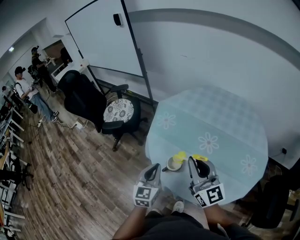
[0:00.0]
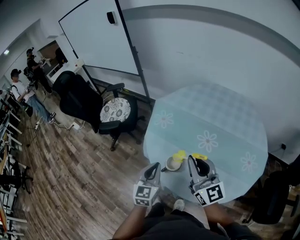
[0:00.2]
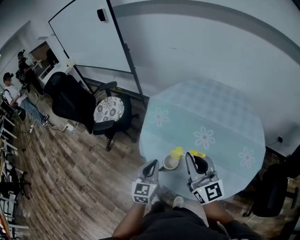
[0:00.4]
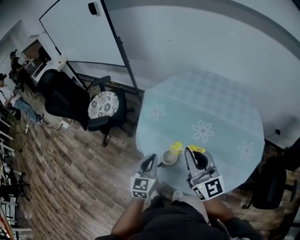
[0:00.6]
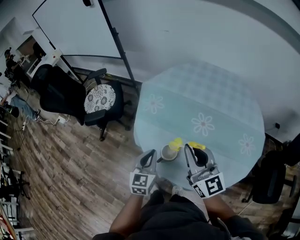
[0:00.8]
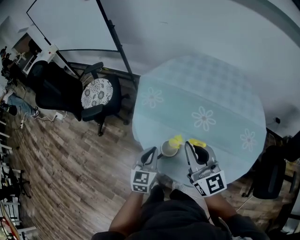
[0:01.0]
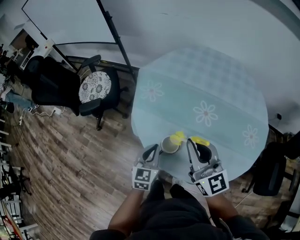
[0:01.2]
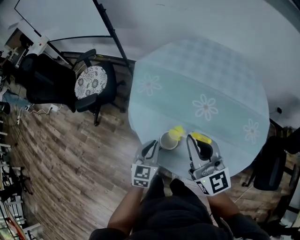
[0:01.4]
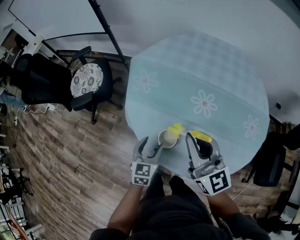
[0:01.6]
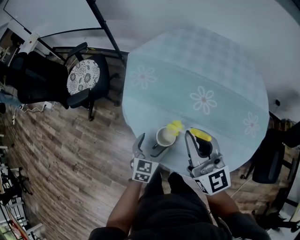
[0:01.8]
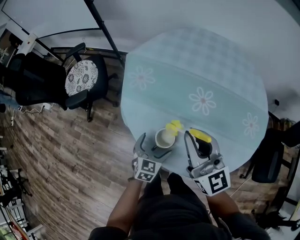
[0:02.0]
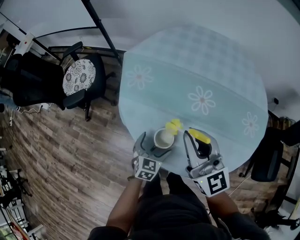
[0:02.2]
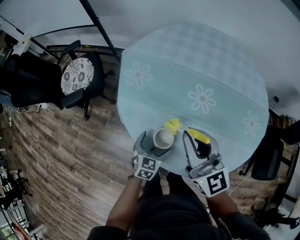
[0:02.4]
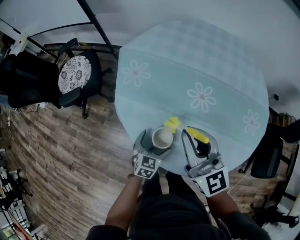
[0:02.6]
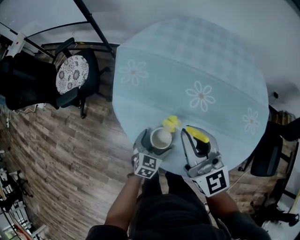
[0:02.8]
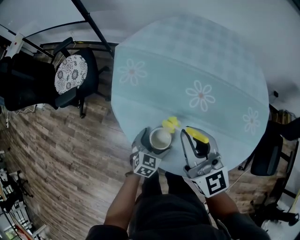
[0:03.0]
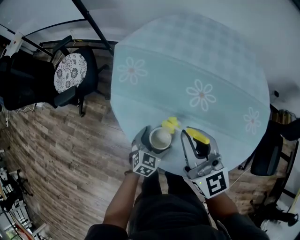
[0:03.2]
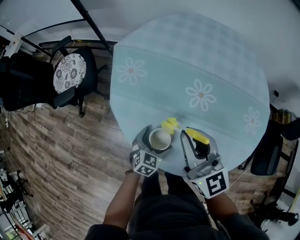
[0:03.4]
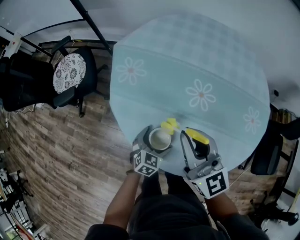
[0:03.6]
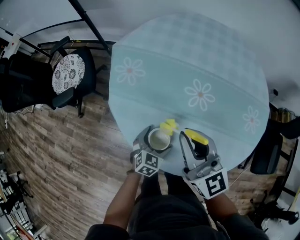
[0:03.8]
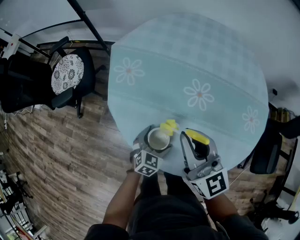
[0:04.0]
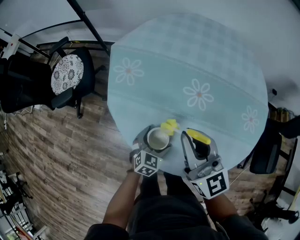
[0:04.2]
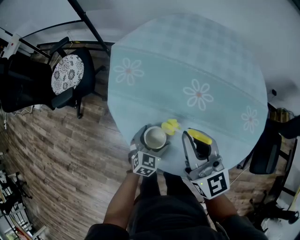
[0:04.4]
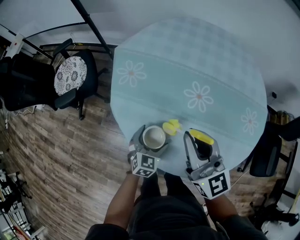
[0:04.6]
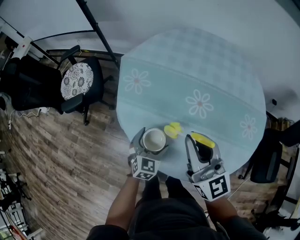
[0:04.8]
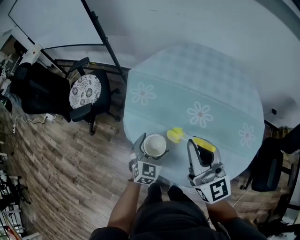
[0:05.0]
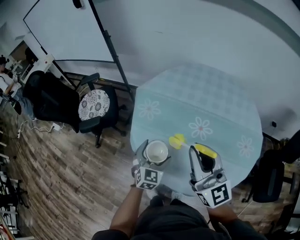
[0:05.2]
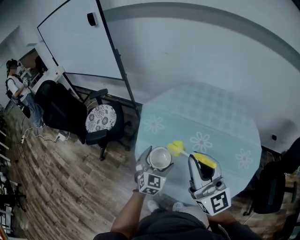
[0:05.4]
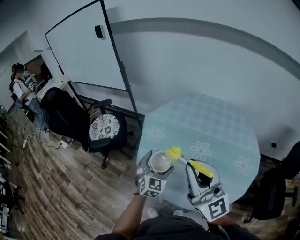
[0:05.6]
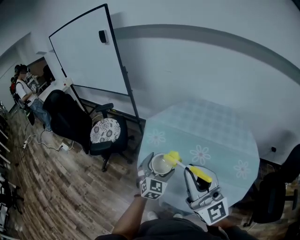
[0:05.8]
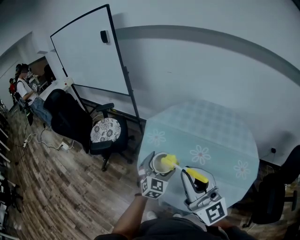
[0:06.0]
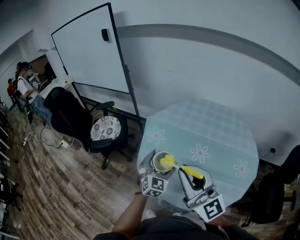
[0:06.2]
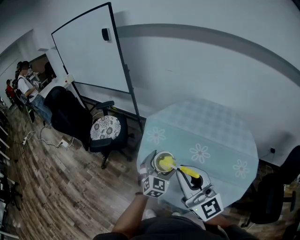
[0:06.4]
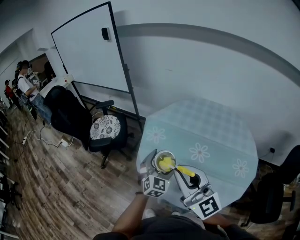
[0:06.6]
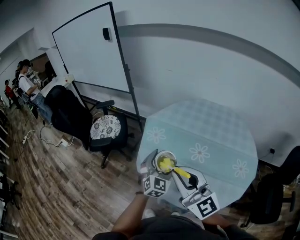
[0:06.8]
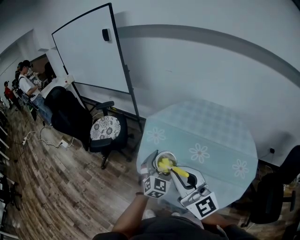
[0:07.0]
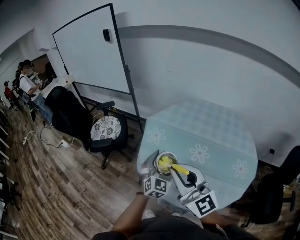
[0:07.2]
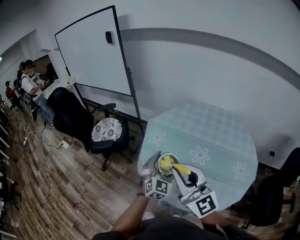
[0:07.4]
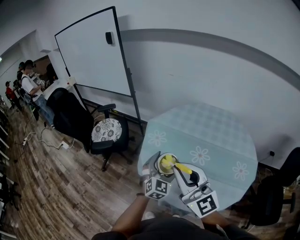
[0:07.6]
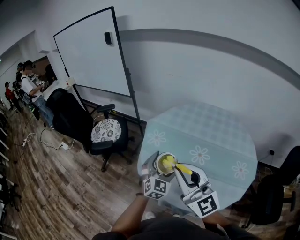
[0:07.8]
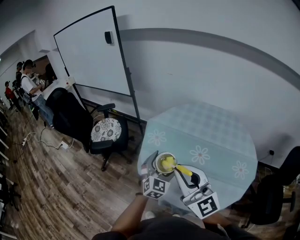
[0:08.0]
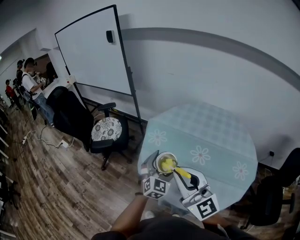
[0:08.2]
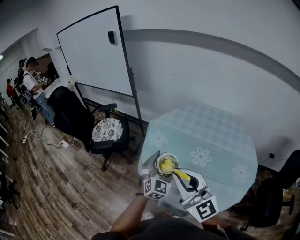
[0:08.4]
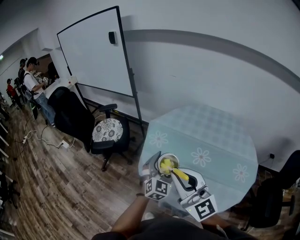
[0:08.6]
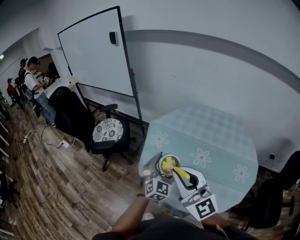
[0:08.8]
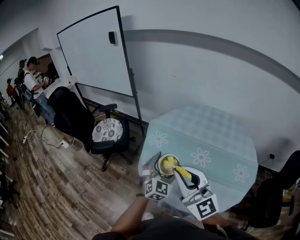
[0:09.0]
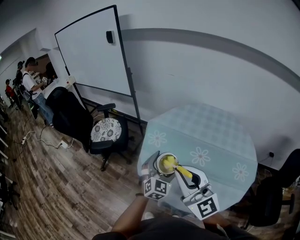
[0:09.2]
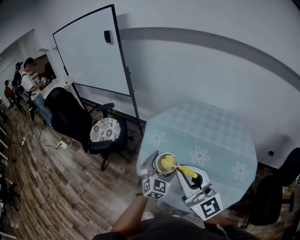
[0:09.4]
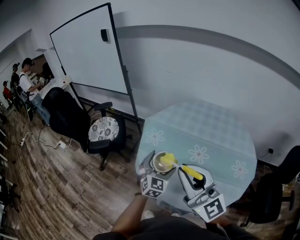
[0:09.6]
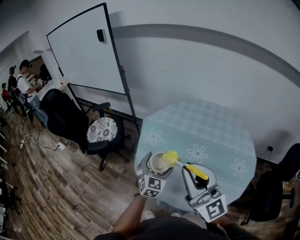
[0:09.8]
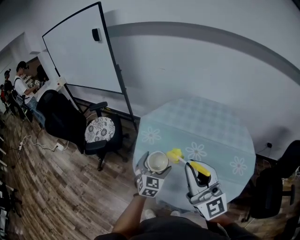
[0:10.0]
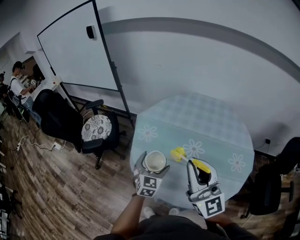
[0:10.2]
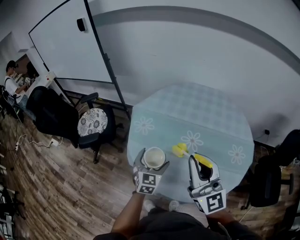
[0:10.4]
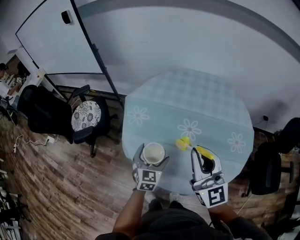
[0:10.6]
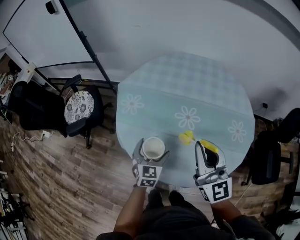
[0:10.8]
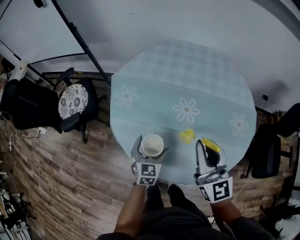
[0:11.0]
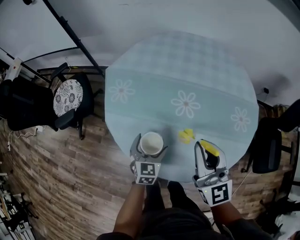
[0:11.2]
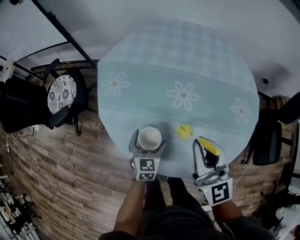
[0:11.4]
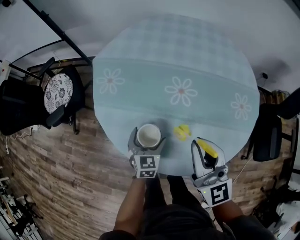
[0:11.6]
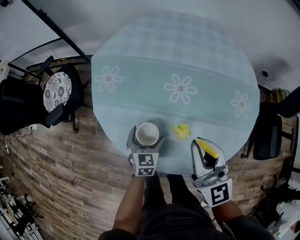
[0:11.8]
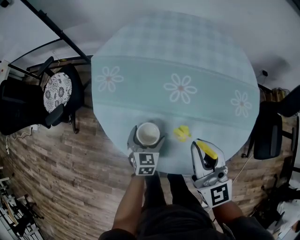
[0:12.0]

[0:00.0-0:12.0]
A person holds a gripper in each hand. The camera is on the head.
0.0 to 1.6 s: The right gripper is displaced downward and forward by some 15 cm. The left gripper travels downward and forward by roughly 20 cm, rotates roughly 20 degrees, and opens.
1.6 to 3.0 s: The left gripper shifts some 15 cm downward and to the right, swivels some 20 degrees, and opens up. Meanwhile the right gripper moves roughly 5 cm.
3.0 to 4.4 s: There are only small adjustments of the grippers.
4.4 to 6.0 s: The right gripper travels upward and backward by some 35 cm, and turns by approximately 30 degrees. The left gripper shifts roughly 30 cm upward, and rotates roughly 30 degrees.
6.0 to 7.6 s: The grippers make only small movements.
7.6 to 9.0 s: The grippers move only a little.
9.0 to 10.4 s: The left gripper travels downward by roughly 10 cm, while the right gripper moves to the right, roughly 10 cm.
10.4 to 12.0 s: The two grippers go about 25 cm downward. The right gripper changes its angle by approximately 20 degrees.

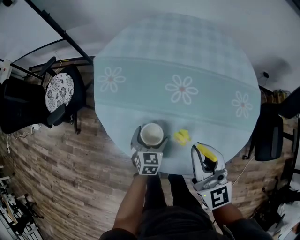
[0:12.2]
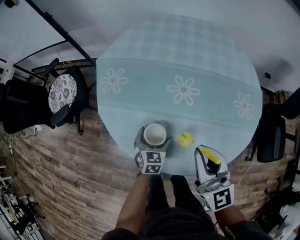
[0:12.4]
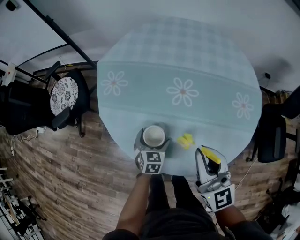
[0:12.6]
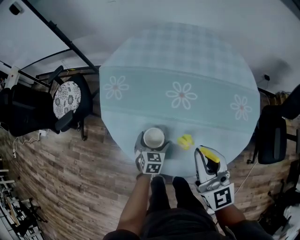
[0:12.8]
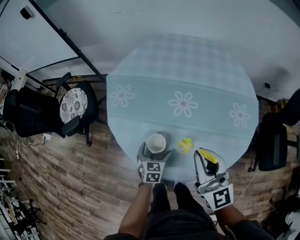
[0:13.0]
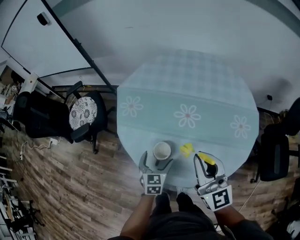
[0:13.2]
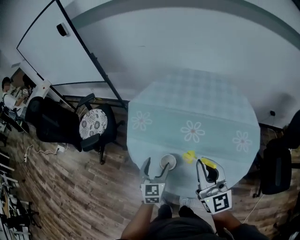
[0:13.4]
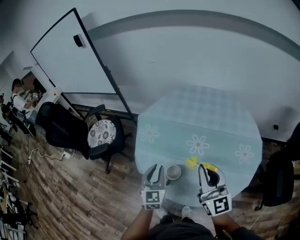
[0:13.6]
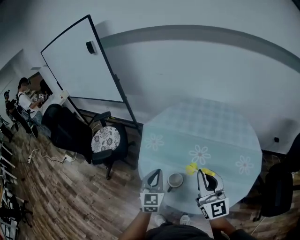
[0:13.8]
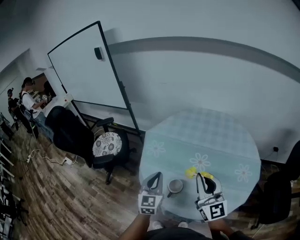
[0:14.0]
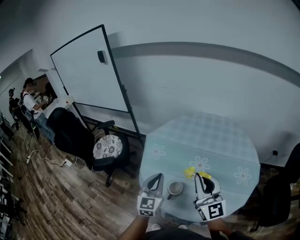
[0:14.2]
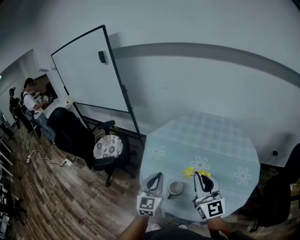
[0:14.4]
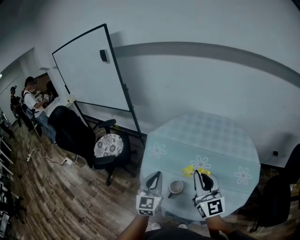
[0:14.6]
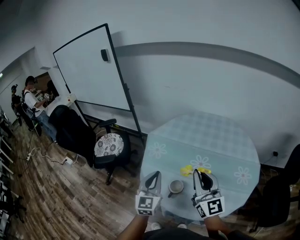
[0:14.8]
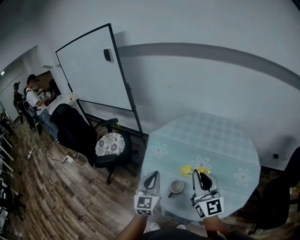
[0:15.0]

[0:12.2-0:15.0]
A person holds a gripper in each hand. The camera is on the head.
12.2 to 13.6 s: The right gripper moves upward, approximately 15 cm. The left gripper travels upward by some 30 cm, rotates roughly 30 degrees, and closes.
13.6 to 15.0 s: The right gripper heads upward and to the left, covering approximately 10 cm. Meanwhile the left gripper shifts approximately 10 cm upward.

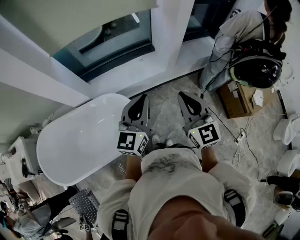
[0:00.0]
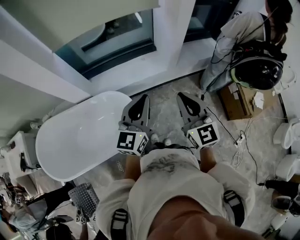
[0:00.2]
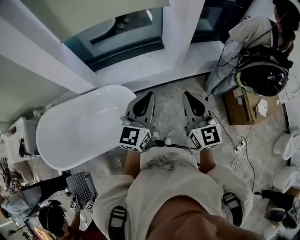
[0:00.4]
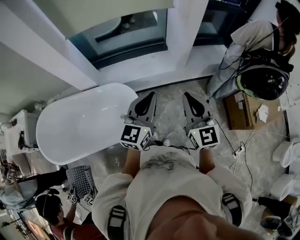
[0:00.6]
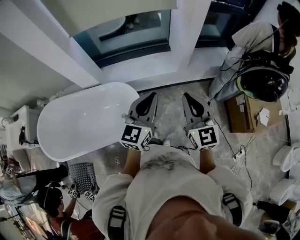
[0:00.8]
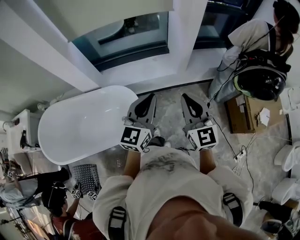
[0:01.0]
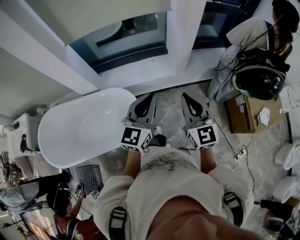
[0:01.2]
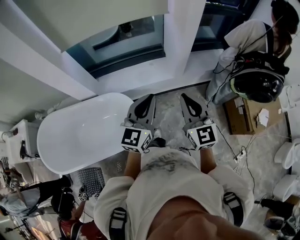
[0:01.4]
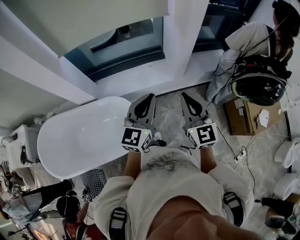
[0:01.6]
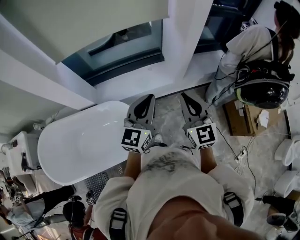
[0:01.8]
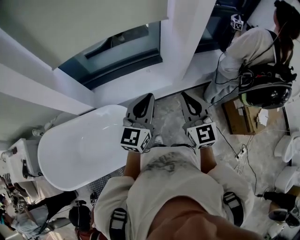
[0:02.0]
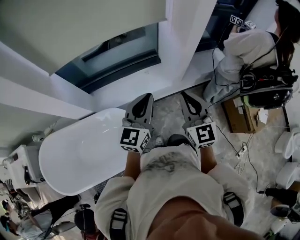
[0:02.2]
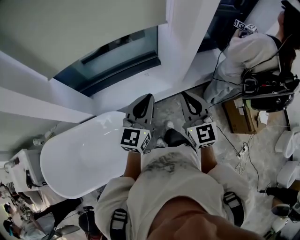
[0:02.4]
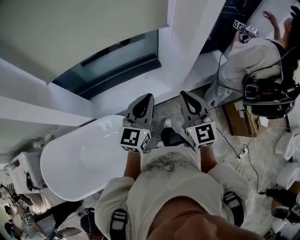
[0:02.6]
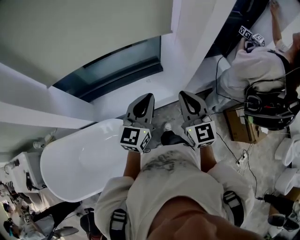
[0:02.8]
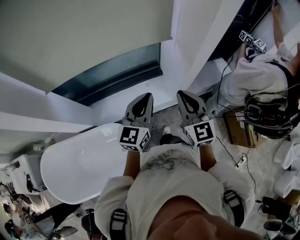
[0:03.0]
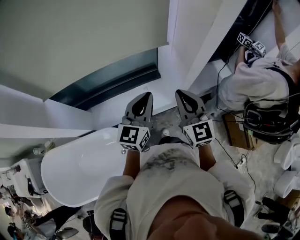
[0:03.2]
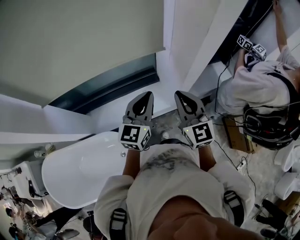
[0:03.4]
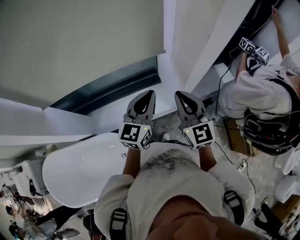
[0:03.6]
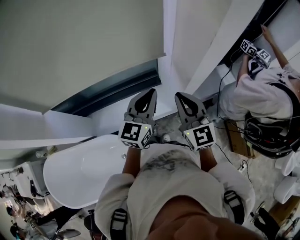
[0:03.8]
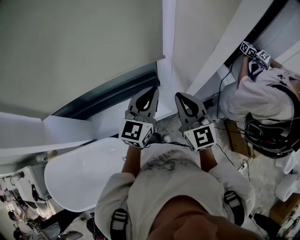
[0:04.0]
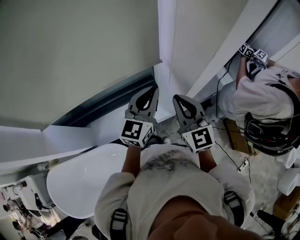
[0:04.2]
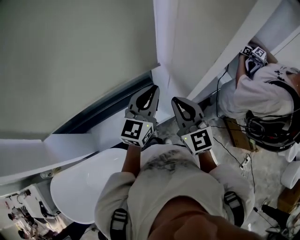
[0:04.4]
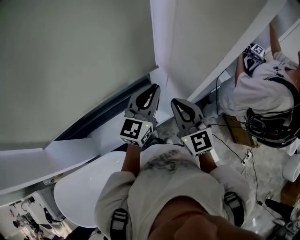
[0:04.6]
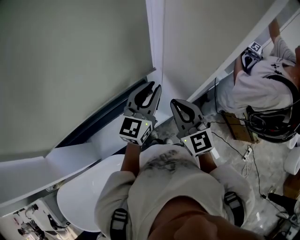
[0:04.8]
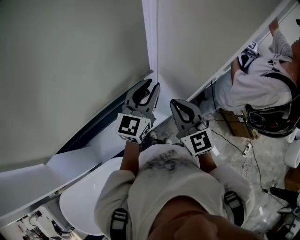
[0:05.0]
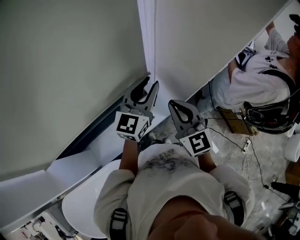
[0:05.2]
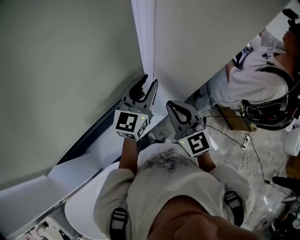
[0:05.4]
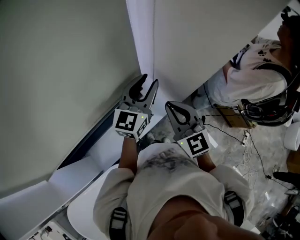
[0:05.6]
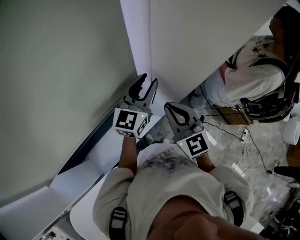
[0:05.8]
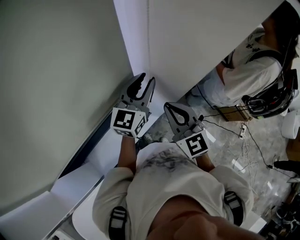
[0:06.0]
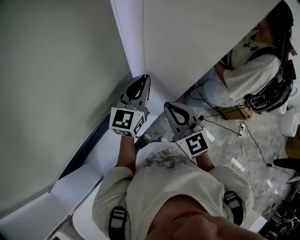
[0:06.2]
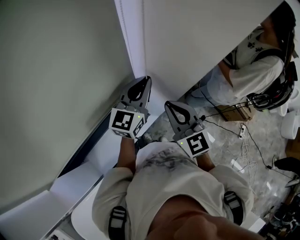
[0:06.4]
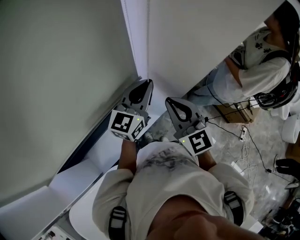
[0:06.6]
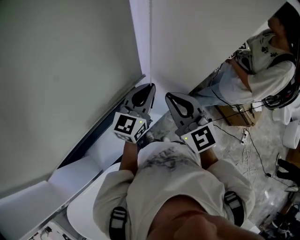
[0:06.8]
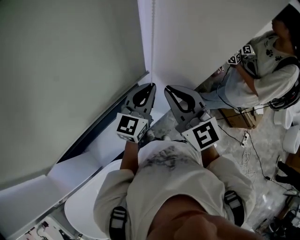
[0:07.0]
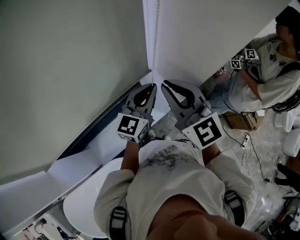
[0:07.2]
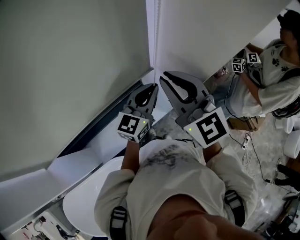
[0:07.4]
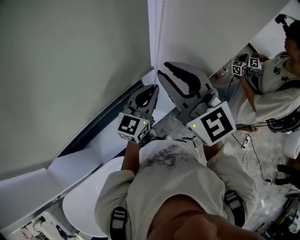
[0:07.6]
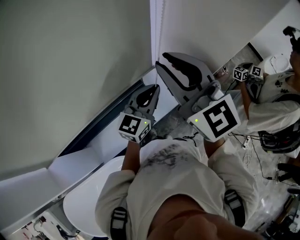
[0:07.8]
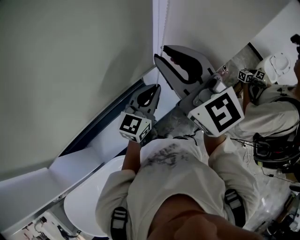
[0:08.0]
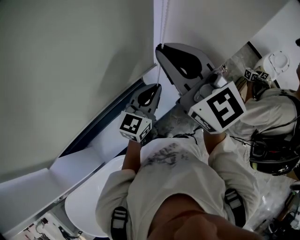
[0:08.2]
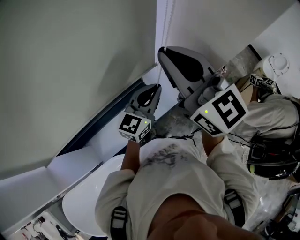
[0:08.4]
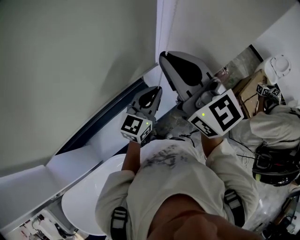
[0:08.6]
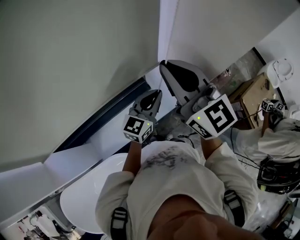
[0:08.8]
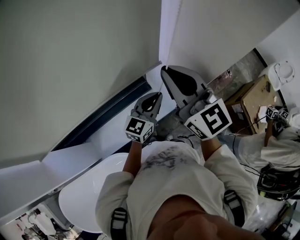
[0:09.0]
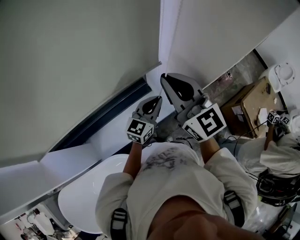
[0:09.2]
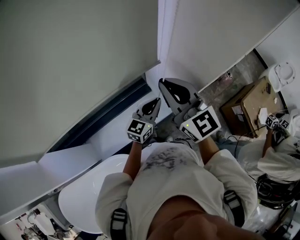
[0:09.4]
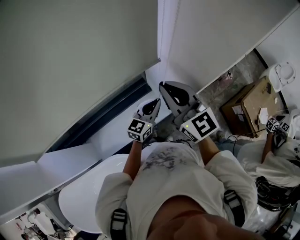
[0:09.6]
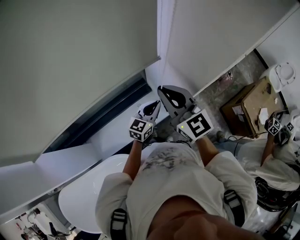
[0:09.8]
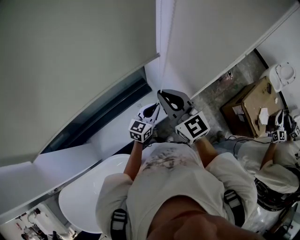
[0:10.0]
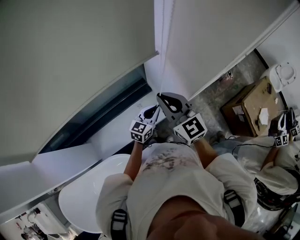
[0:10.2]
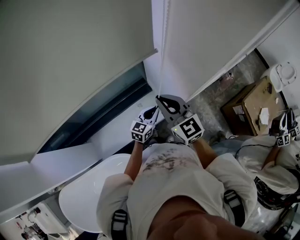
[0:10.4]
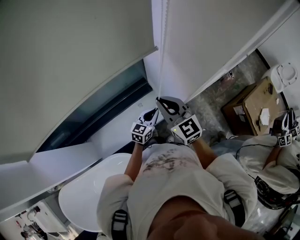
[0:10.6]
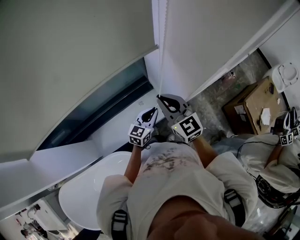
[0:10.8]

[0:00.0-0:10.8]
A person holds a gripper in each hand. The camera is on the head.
0.0 to 1.6 s: The left gripper moves roughly 5 cm. Meanwhile the right gripper goes about 5 cm forward.
1.6 to 3.0 s: The two grippers go about 25 cm forward.
3.0 to 4.6 s: The two grippers go about 20 cm forward.
4.6 to 6.2 s: The left gripper moves forward, roughly 10 cm, and opens, then closes once more.
6.2 to 7.8 s: The left gripper goes roughly 5 cm backward. Meanwhile the right gripper heads upward and to the left, covering roughly 20 cm, and changes its angle by about 20 degrees.
7.8 to 9.2 s: The grippers both shift downward by about 10 cm.
9.2 to 10.8 s: Both grippers move downward, approximately 15 cm.
